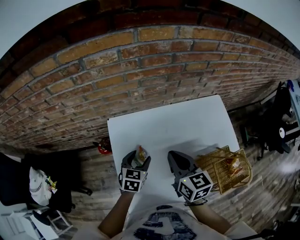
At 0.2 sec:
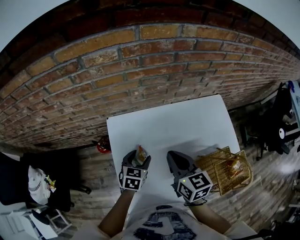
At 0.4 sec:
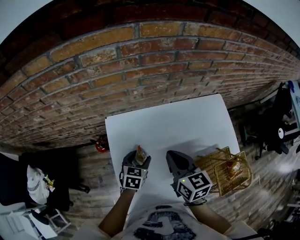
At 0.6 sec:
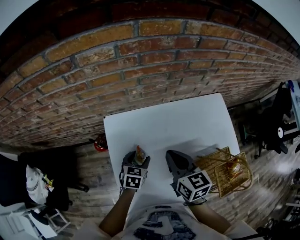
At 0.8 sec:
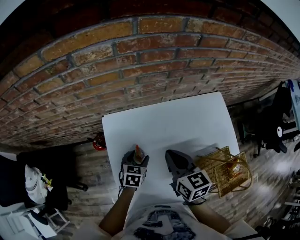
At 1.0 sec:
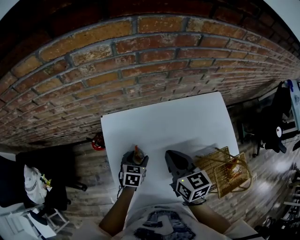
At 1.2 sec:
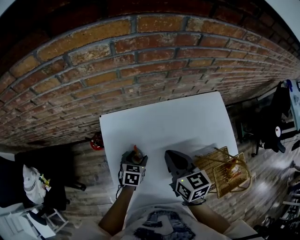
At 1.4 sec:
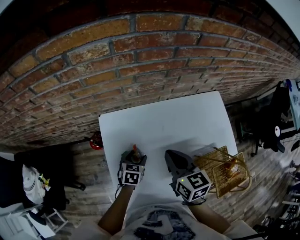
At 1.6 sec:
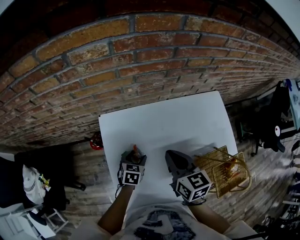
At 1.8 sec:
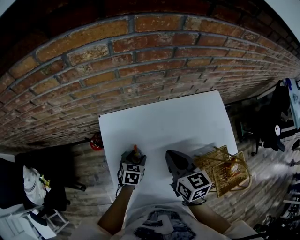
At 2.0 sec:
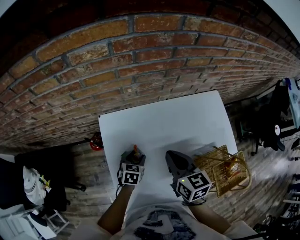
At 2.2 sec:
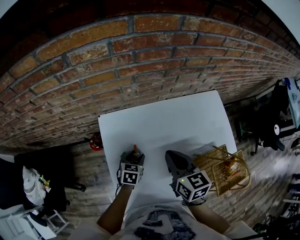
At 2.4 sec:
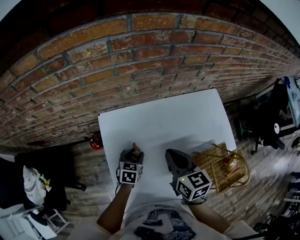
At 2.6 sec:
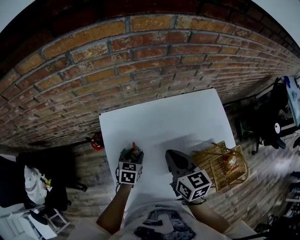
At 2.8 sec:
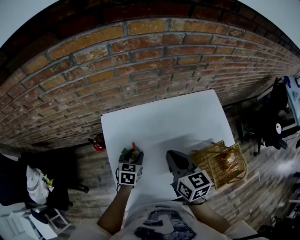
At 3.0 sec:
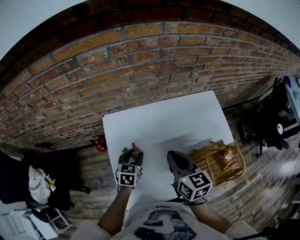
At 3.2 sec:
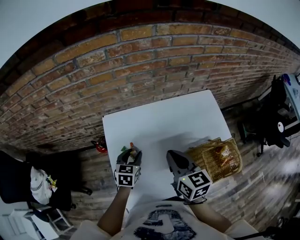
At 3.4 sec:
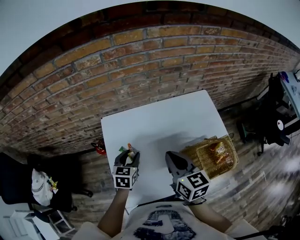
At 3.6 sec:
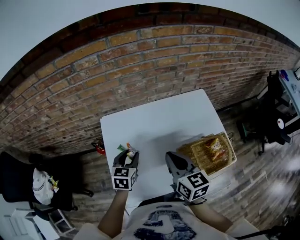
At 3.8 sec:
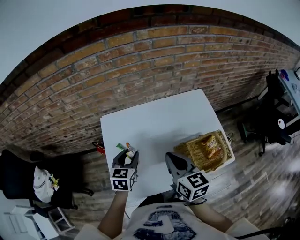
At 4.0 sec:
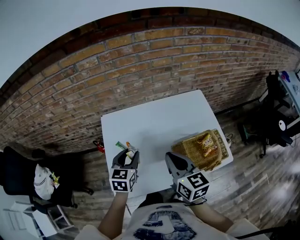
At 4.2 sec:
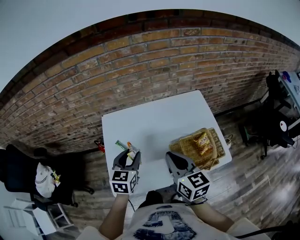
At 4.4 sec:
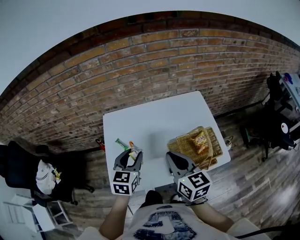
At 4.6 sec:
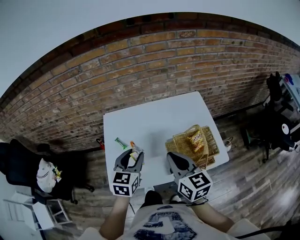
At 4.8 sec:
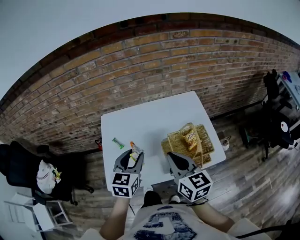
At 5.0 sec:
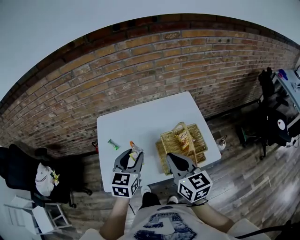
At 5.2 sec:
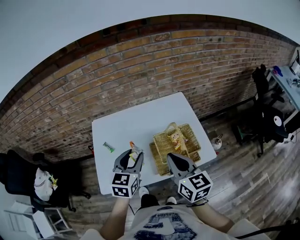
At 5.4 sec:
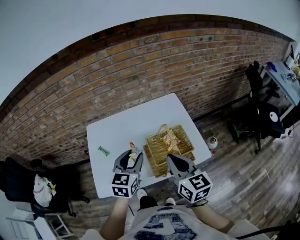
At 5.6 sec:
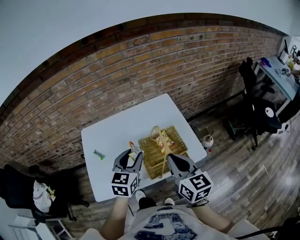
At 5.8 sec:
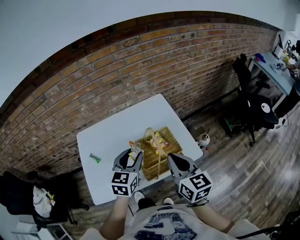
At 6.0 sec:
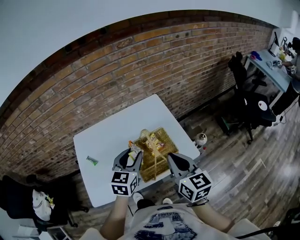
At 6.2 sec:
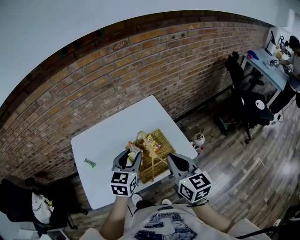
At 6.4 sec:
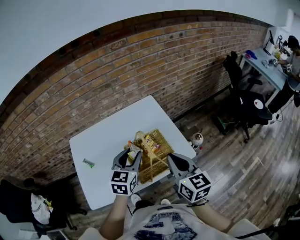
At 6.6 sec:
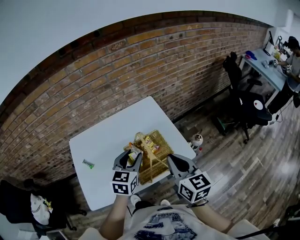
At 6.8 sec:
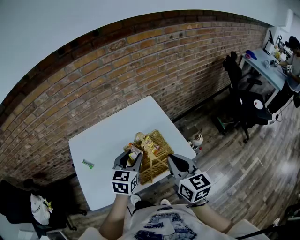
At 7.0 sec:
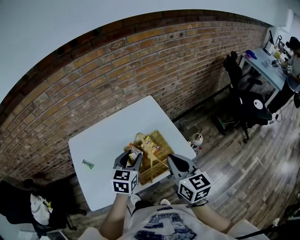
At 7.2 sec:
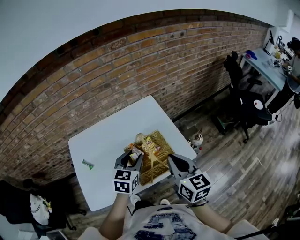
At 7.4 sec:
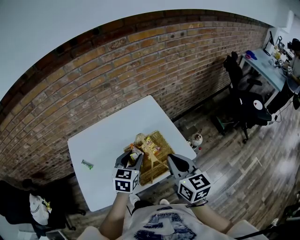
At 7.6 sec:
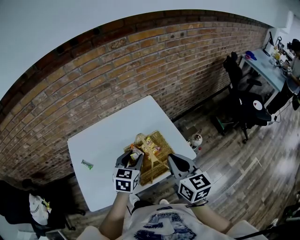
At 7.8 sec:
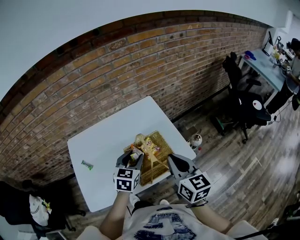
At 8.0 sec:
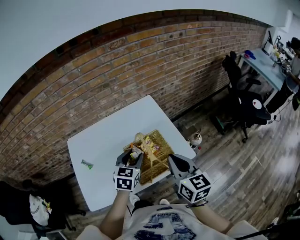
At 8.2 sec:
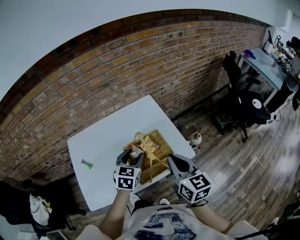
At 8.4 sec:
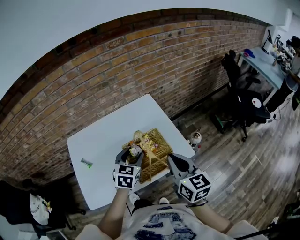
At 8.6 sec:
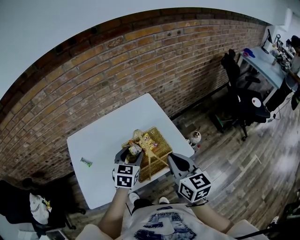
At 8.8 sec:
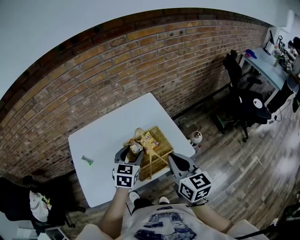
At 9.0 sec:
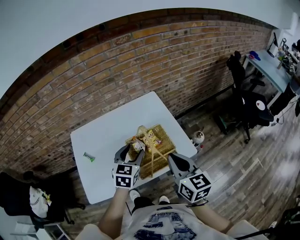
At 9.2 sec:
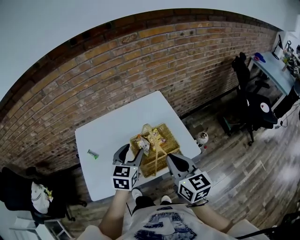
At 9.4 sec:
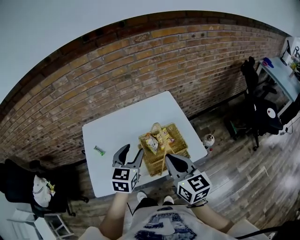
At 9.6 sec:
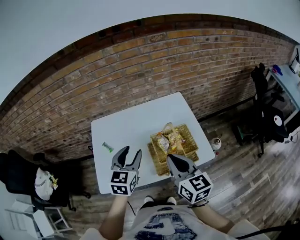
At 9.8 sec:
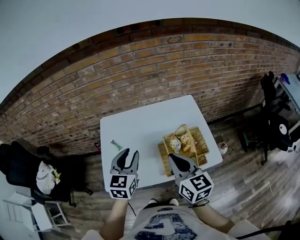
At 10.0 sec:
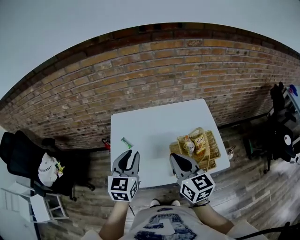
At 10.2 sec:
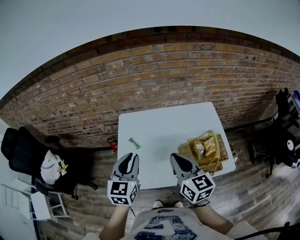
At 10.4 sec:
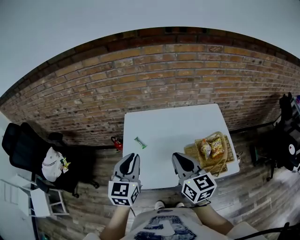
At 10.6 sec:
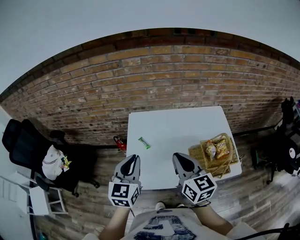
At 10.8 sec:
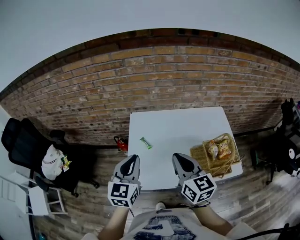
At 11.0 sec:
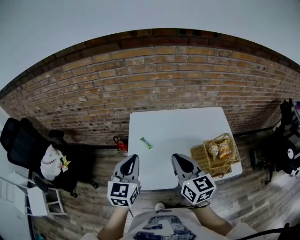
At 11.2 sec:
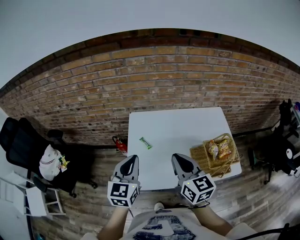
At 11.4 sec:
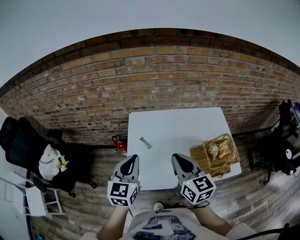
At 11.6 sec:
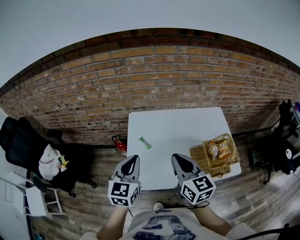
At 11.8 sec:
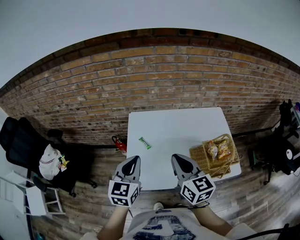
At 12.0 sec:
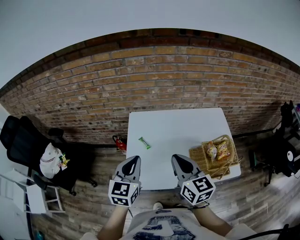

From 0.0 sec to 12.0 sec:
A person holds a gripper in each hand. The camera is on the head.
From 0.0 sec to 1.6 sec: The left gripper goes some 10 cm downward.
From 1.6 sec to 3.0 sec: The left gripper goes some 10 cm upward. Meanwhile the right gripper travels backward by about 5 cm.
From 3.0 sec to 4.4 sec: The left gripper heads upward, backward and to the right, covering about 25 cm; the right gripper moves backward, to the right and upward, approximately 20 cm.
From 4.4 sec to 6.0 sec: The two grippers go about 20 cm to the right.
From 6.0 sec to 7.6 sec: The left gripper moves downward, some 5 cm.
From 7.6 sec to 9.0 sec: The grippers make only small movements.
From 9.0 sec to 10.4 sec: Both grippers move to the left, roughly 30 cm. The left gripper turns by some 30 degrees, and closes its fingers. Meanwhile the right gripper swivels approximately 20 degrees.
From 10.4 sec to 12.0 sec: The grippers move only a little.

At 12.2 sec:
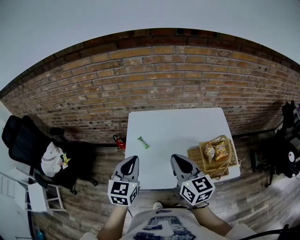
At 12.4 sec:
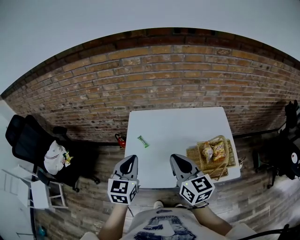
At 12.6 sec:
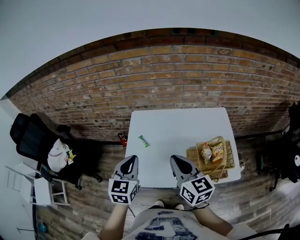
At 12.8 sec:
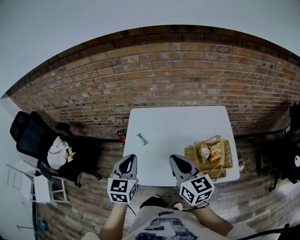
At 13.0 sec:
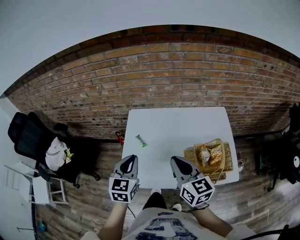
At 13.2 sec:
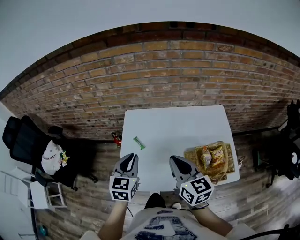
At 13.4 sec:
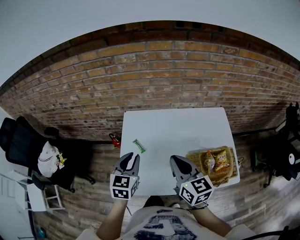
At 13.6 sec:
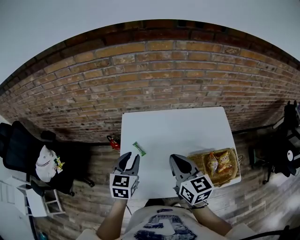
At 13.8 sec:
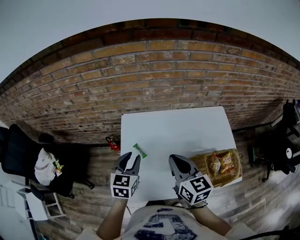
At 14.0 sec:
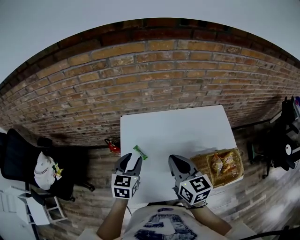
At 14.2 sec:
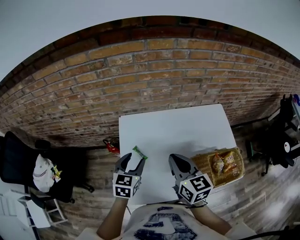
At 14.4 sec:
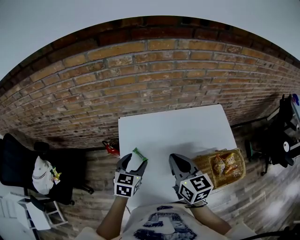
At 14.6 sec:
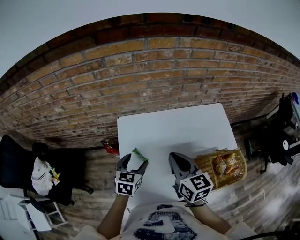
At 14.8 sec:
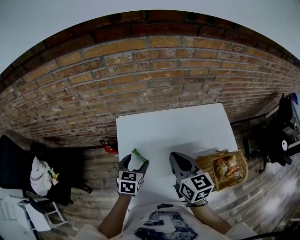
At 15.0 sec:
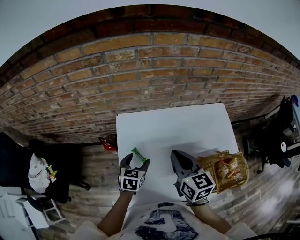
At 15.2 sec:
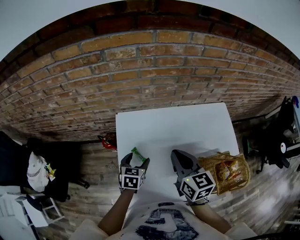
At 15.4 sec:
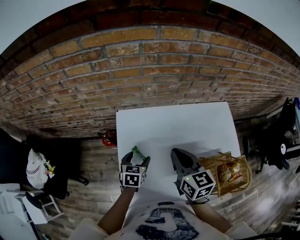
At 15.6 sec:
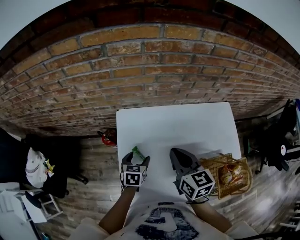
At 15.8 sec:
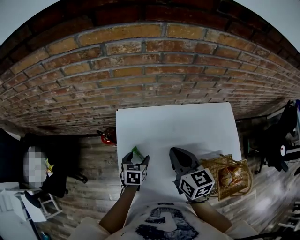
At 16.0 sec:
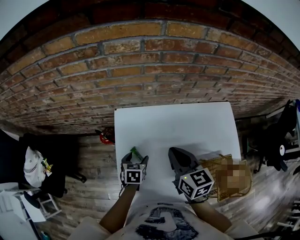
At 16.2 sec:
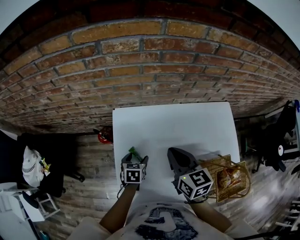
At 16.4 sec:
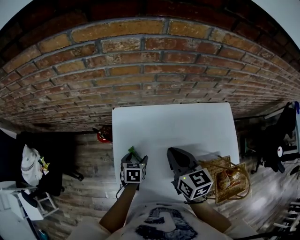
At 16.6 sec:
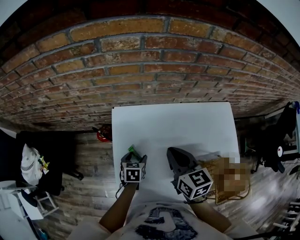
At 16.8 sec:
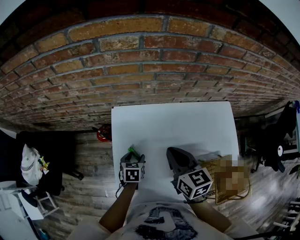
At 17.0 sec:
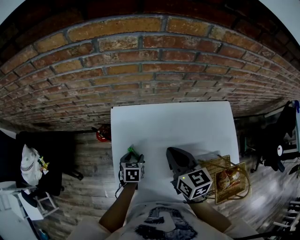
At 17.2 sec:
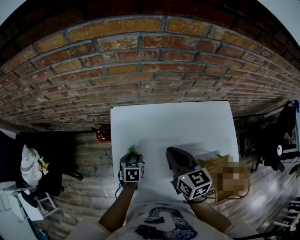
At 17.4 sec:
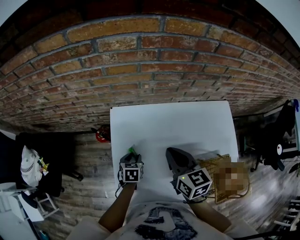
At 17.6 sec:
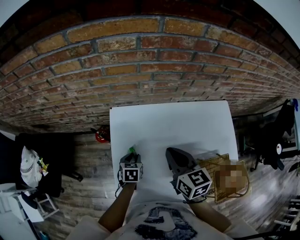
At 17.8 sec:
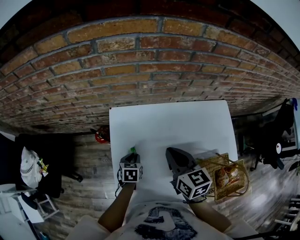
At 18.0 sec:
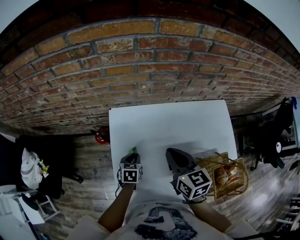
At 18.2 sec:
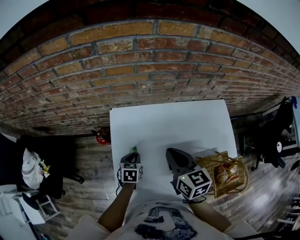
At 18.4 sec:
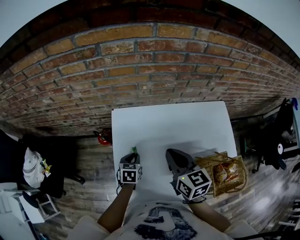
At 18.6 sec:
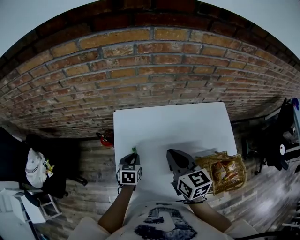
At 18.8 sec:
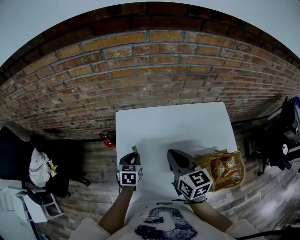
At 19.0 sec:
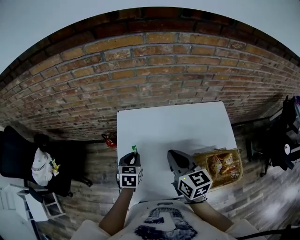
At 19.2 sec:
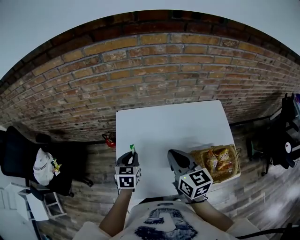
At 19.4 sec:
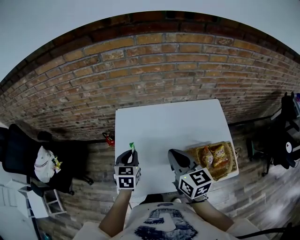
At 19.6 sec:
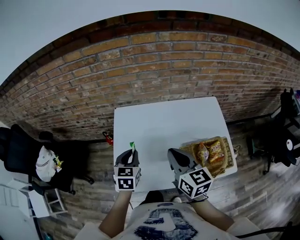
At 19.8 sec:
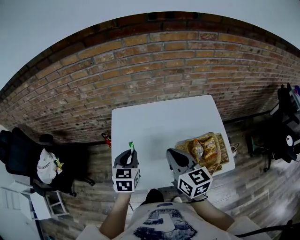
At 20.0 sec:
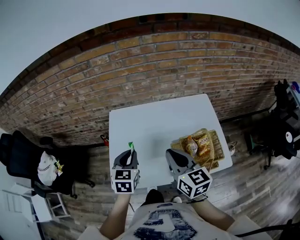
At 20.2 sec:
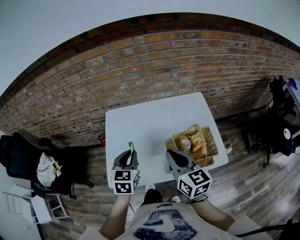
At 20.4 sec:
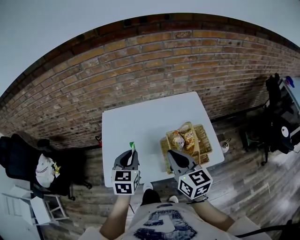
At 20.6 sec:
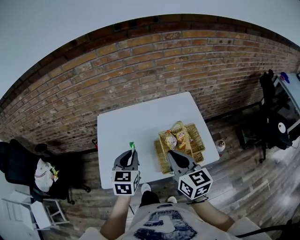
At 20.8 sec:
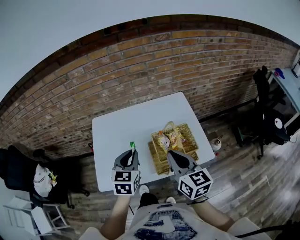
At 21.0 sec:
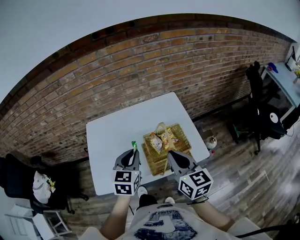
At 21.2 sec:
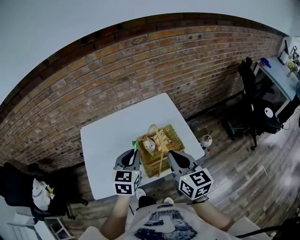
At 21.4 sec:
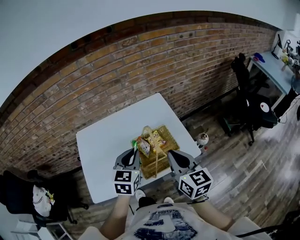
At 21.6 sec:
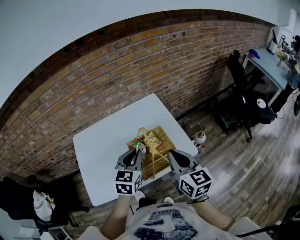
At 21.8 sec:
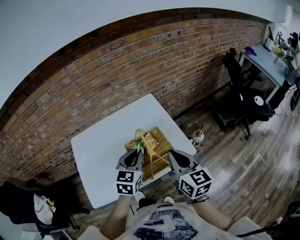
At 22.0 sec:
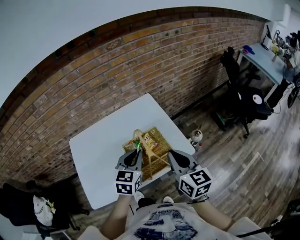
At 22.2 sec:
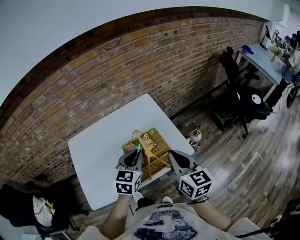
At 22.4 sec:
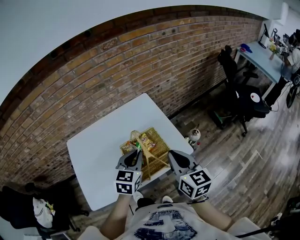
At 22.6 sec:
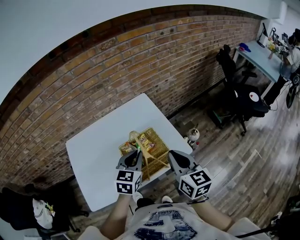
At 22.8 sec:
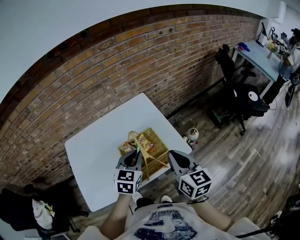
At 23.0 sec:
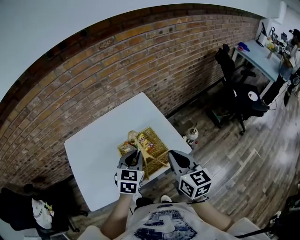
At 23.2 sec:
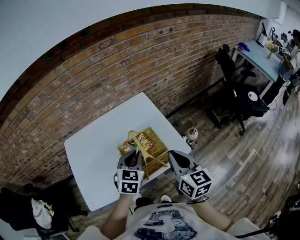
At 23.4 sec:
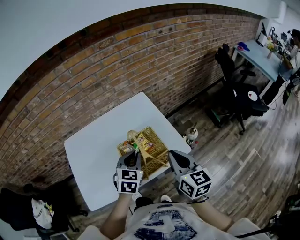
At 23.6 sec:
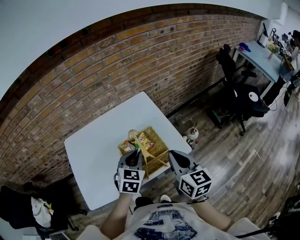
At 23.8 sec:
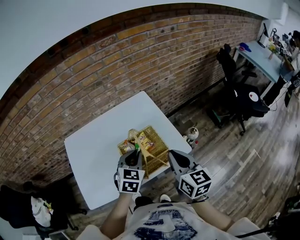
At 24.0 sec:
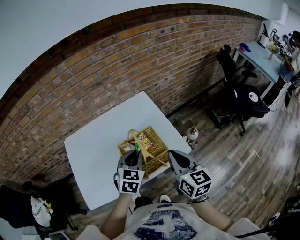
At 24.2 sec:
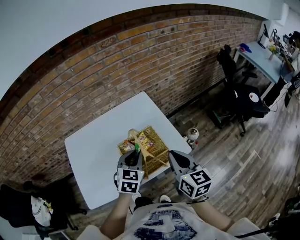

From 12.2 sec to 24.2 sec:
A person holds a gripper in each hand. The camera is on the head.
From 12.2 sec to 13.8 sec: The right gripper shifts about 10 cm forward; the left gripper heads forward and downward, covering some 15 cm.
From 13.8 sec to 15.2 sec: The left gripper moves downward and forward, roughly 15 cm, and opens, while the right gripper moves forward, about 10 cm.
From 15.2 sec to 16.6 sec: The right gripper moves approximately 5 cm. The left gripper moves downward, roughly 10 cm.
From 16.6 sec to 18.2 sec: The left gripper closes up.
From 18.2 sec to 19.8 sec: The right gripper moves backward, to the right and upward, some 20 cm; the left gripper shifts some 25 cm upward and backward, and rotates some 20 degrees.
From 19.8 sec to 21.2 sec: The left gripper travels to the right by roughly 25 cm, and swivels roughly 20 degrees, while the right gripper moves to the right and backward, approximately 25 cm.
From 21.2 sec to 22.6 sec: Both grippers move to the right, some 10 cm.
From 22.6 sec to 24.2 sec: The grippers make only small movements.
